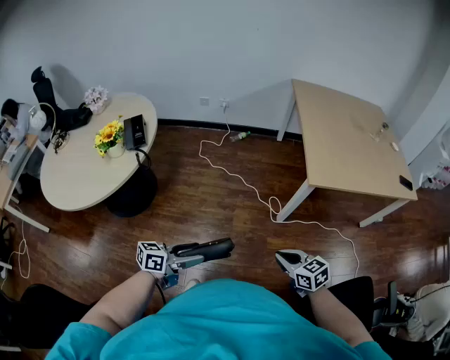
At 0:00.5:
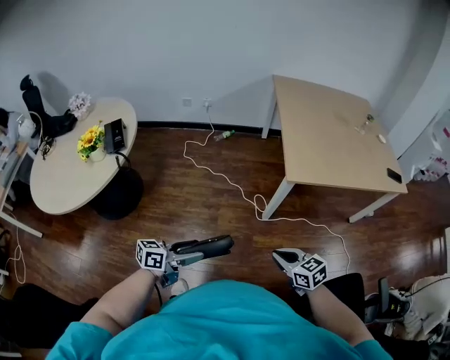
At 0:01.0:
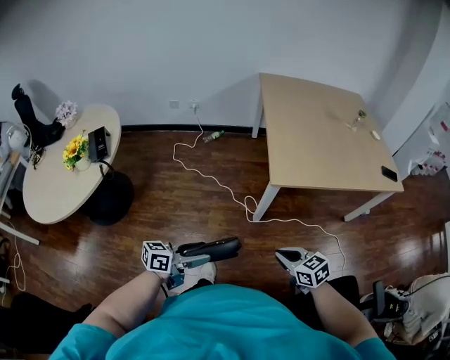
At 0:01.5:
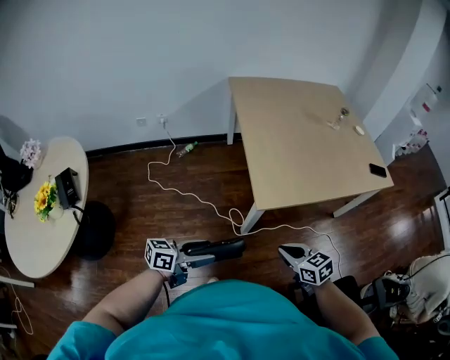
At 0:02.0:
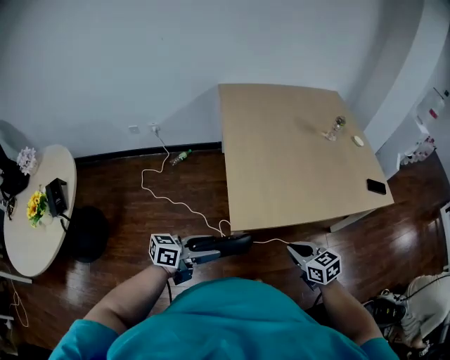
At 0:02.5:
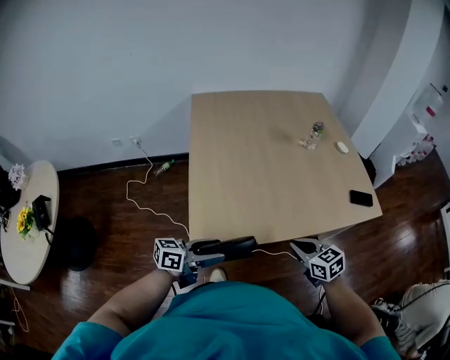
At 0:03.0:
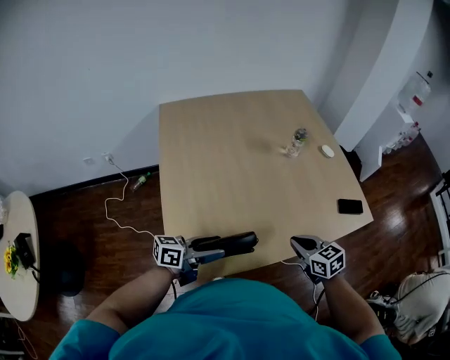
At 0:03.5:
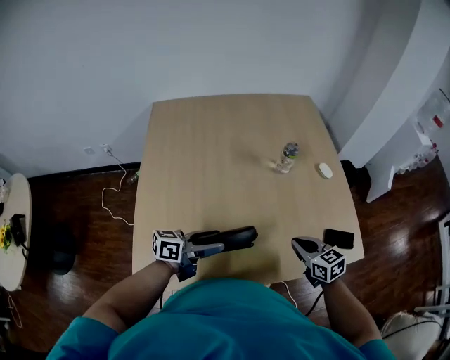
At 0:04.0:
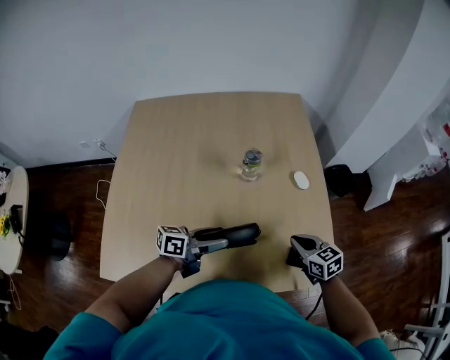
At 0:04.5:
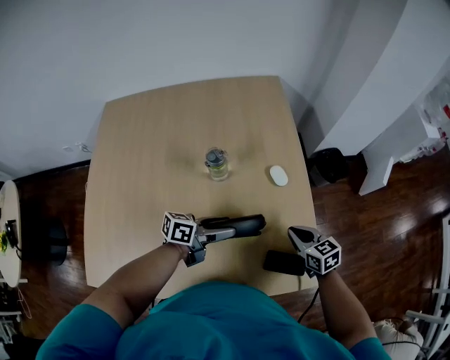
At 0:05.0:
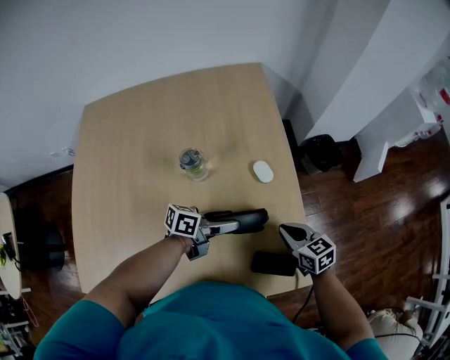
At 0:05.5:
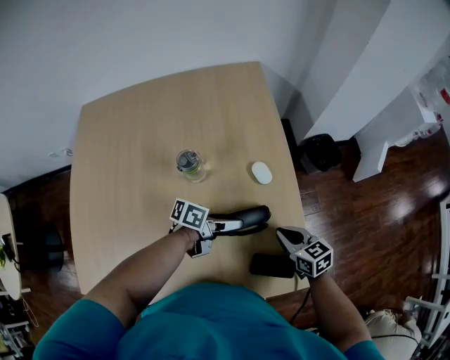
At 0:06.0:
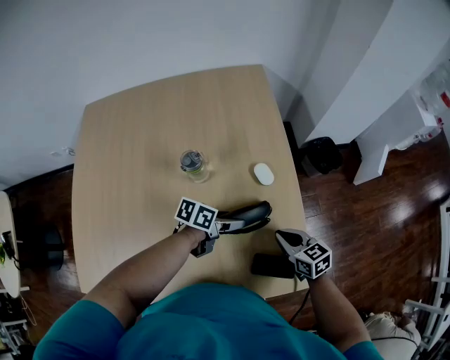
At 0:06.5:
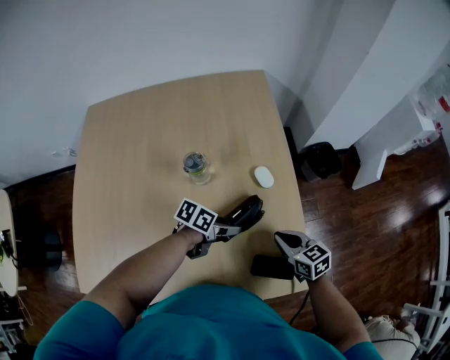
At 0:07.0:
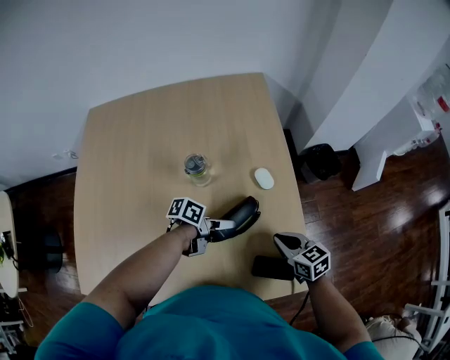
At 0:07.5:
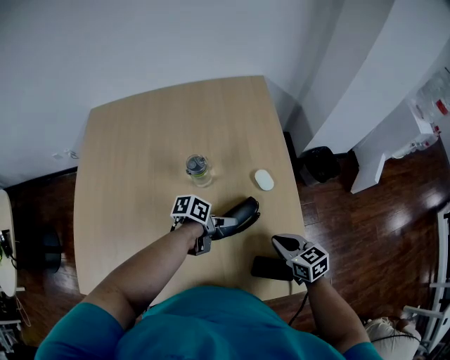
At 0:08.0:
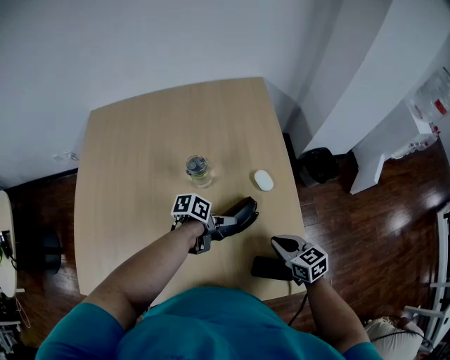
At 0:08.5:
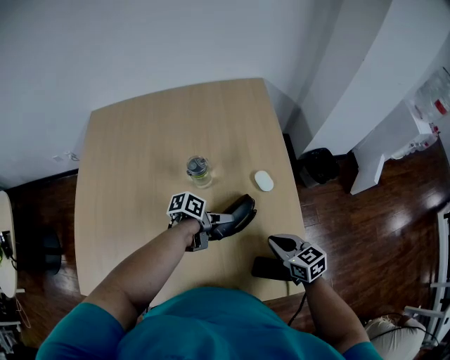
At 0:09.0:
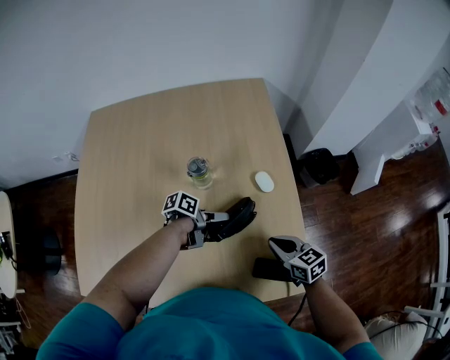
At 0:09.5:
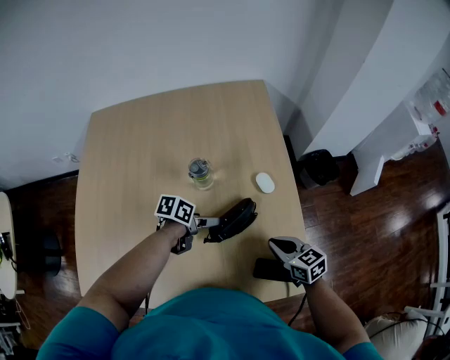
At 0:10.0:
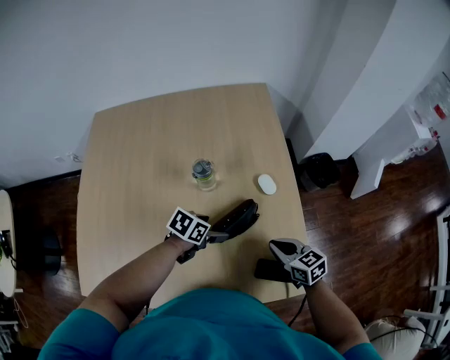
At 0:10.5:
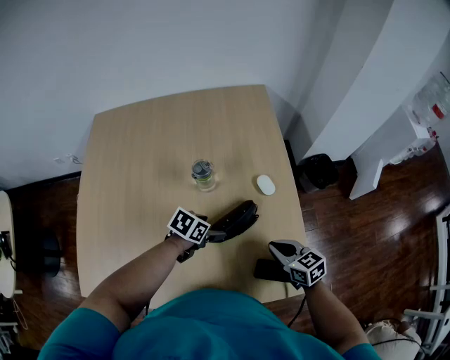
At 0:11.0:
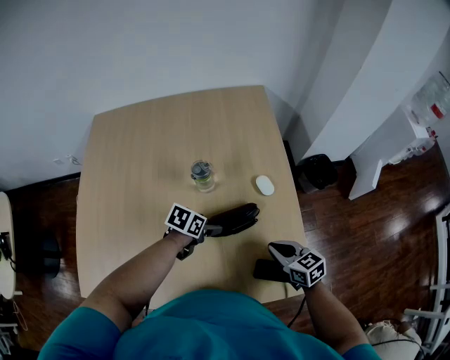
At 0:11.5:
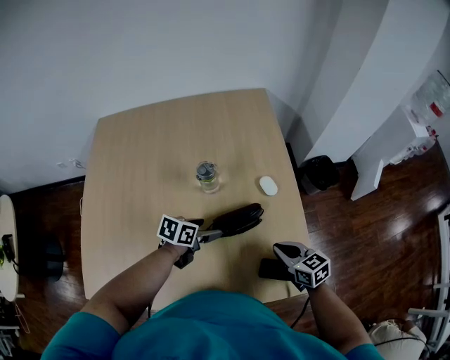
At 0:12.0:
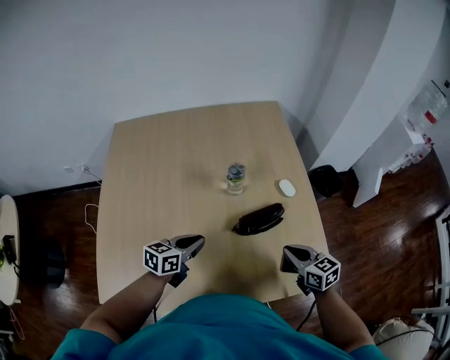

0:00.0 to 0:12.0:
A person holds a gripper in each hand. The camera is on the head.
0:00.0 to 0:02.0: Both grippers are carried forward and to the right, some 40 cm.
0:02.0 to 0:04.0: The two grippers travel together, forward and to the right, about 60 cm.
0:04.0 to 0:06.0: The left gripper travels to the right, forward and downward by some 20 cm, and changes its angle by roughly 30 degrees. Meanwhile the right gripper is displaced to the right and forward by some 10 cm.
0:06.0 to 0:08.0: The grippers stay close to where they were, moving slightly.
0:08.0 to 0:10.0: The left gripper rotates some 40 degrees.
0:10.0 to 0:12.0: The left gripper shifts approximately 15 cm to the left, backward and upward, turns by about 30 degrees, and closes its fingers; the right gripper moves about 5 cm.

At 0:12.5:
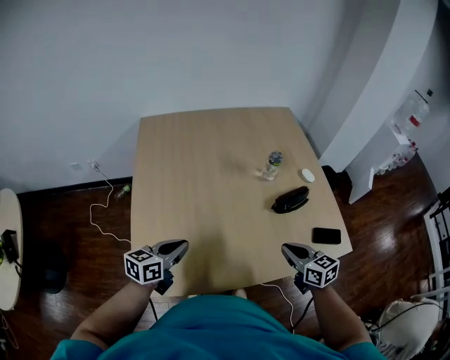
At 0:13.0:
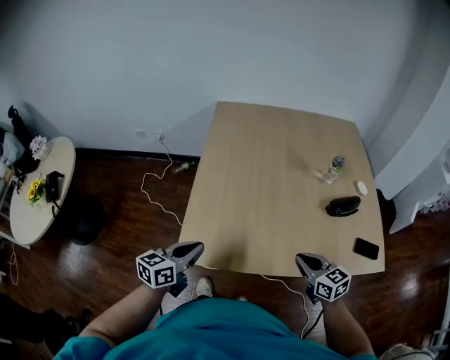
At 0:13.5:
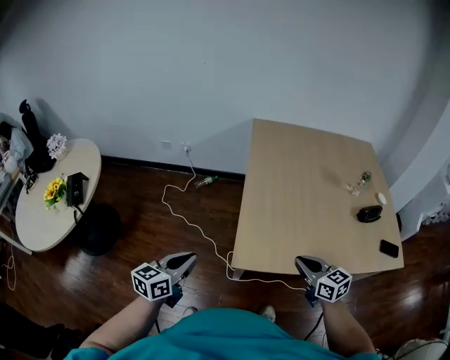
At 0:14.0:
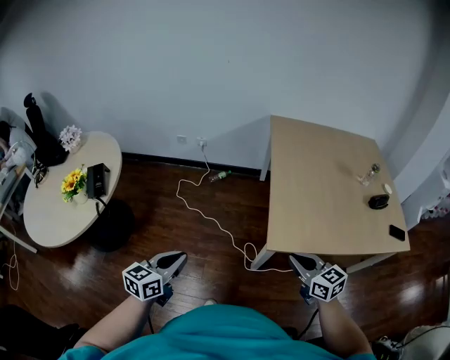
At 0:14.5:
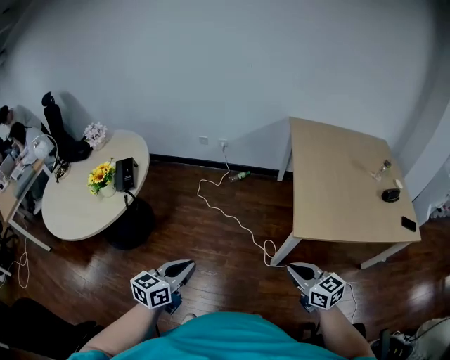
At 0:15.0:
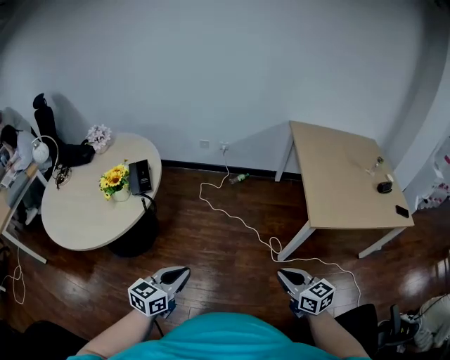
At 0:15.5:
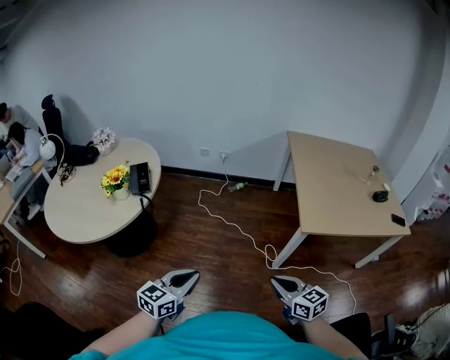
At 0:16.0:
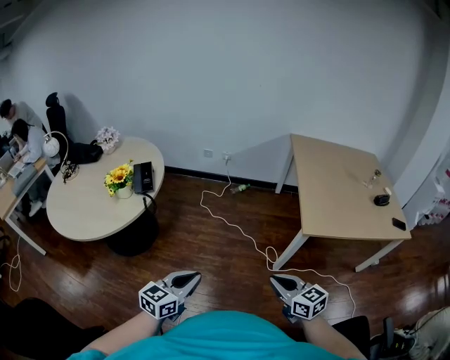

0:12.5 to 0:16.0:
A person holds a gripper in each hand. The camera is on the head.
0:12.5 to 0:14.5: The pair of grippers is taken to the left and backward, some 70 cm. The right gripper rotates about 30 degrees, while the left gripper changes its angle by about 20 degrees.
0:14.5 to 0:16.0: The right gripper goes approximately 15 cm to the left and backward, while the left gripper travels backward and to the left by roughly 10 cm.

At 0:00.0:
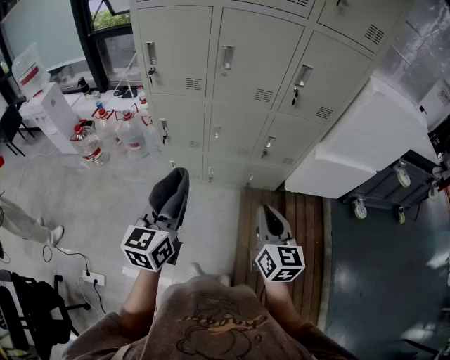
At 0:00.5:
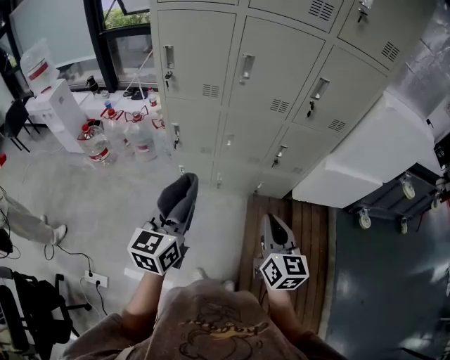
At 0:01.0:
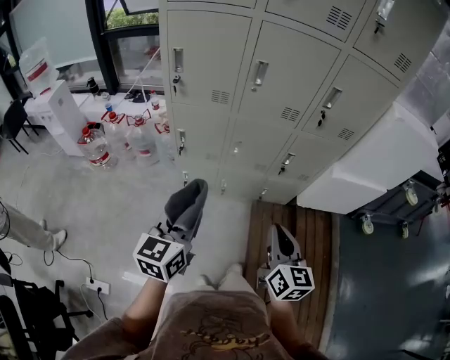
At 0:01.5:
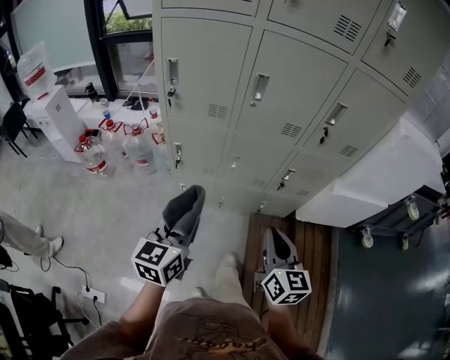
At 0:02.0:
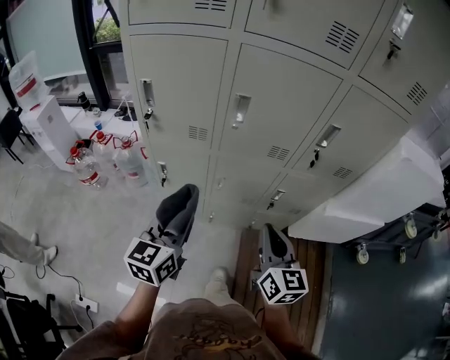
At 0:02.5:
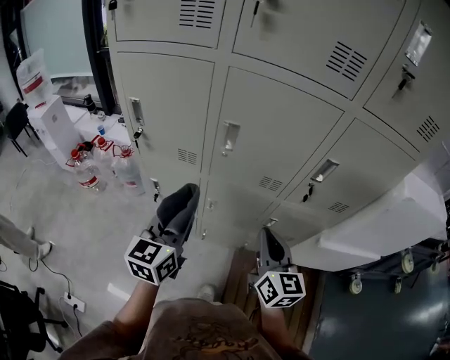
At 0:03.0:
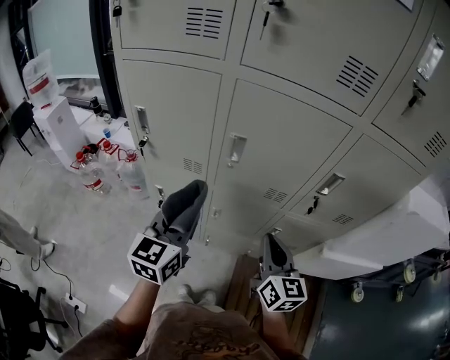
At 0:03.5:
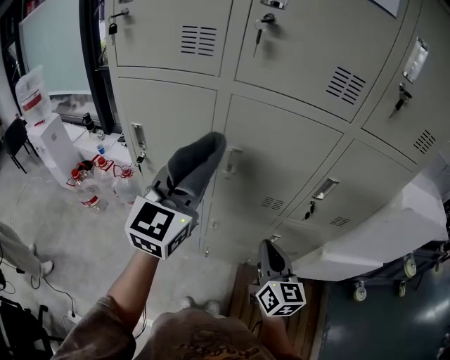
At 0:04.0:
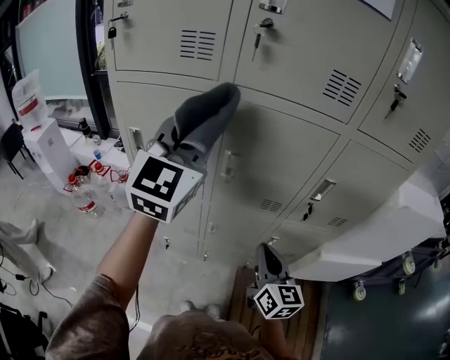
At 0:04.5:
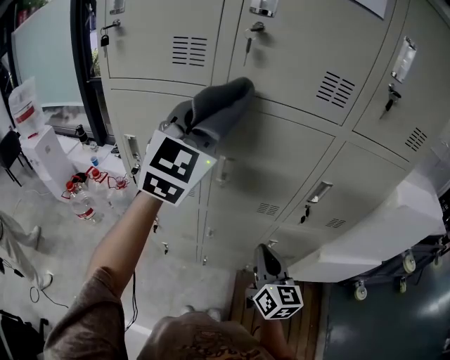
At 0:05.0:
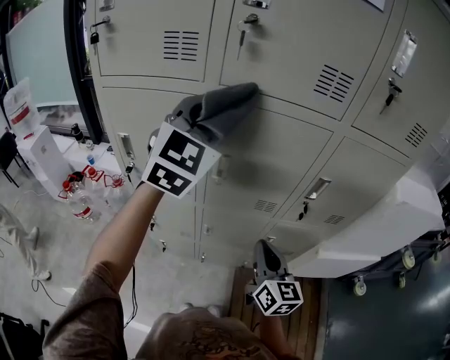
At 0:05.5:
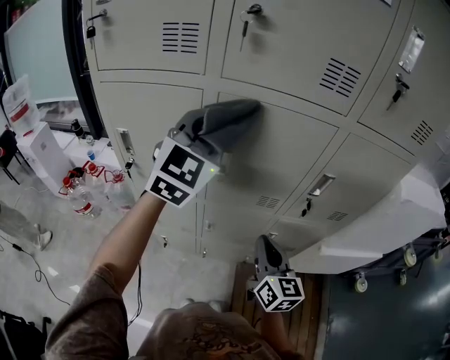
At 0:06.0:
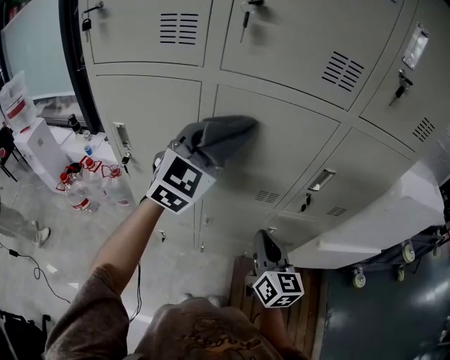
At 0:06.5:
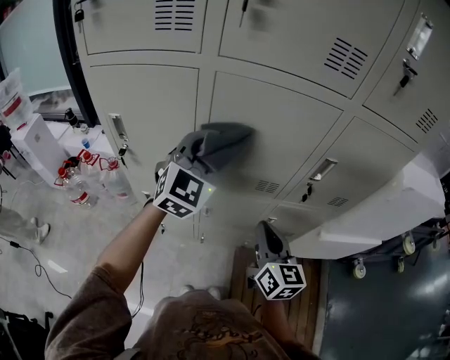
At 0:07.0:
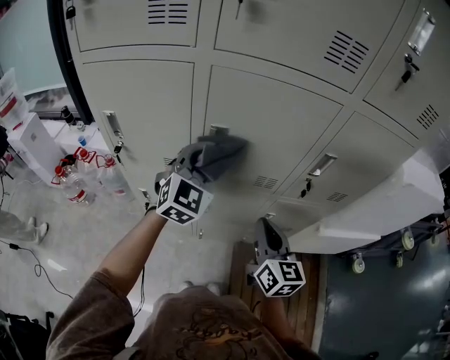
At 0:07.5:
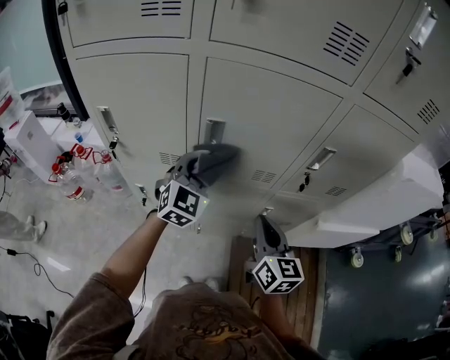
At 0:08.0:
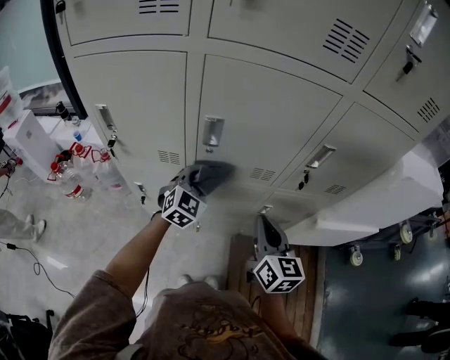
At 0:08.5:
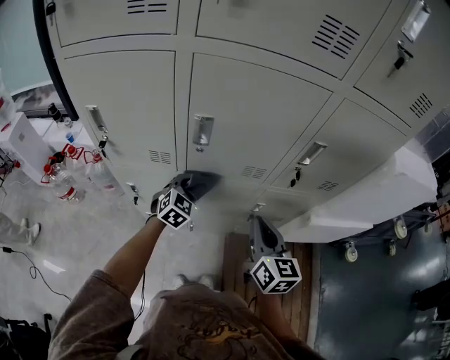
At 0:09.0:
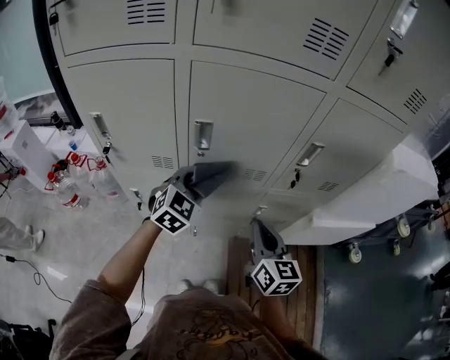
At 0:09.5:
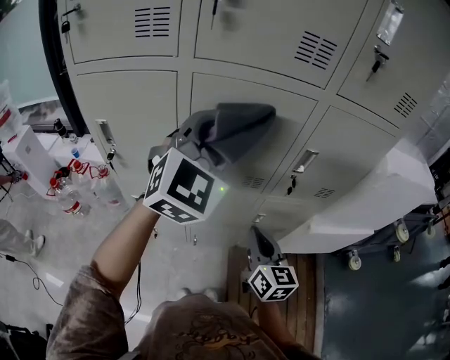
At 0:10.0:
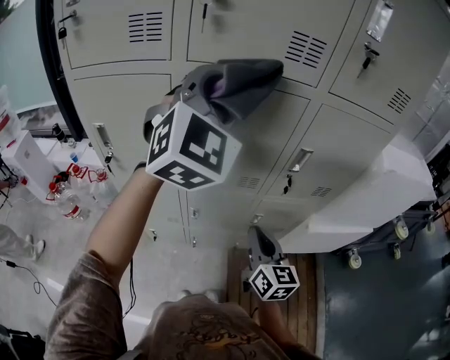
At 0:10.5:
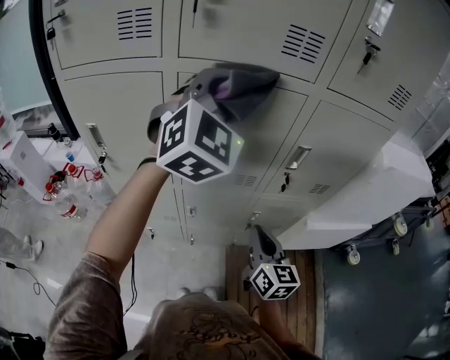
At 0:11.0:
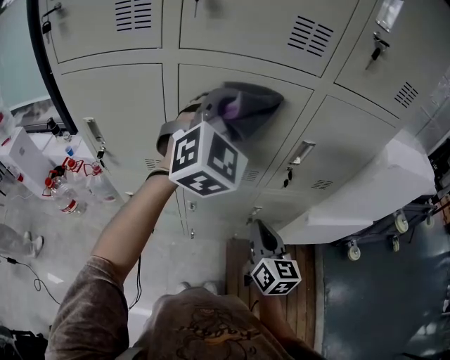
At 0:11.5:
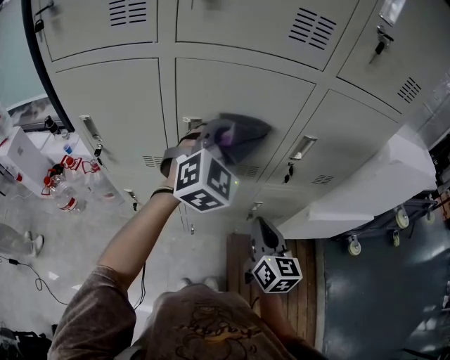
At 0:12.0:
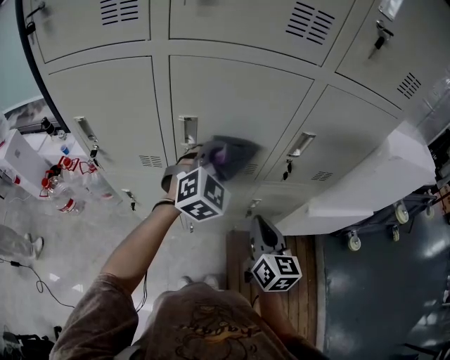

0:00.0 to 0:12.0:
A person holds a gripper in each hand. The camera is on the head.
0:00.0 to 0:02.0: The grippers both shift forward by approximately 20 cm.
0:02.0 to 0:04.0: The left gripper is displaced upward and forward by some 35 cm, and turns by approximately 40 degrees; the right gripper heads forward, covering roughly 10 cm.
0:04.0 to 0:06.0: The left gripper goes roughly 10 cm downward, forward and to the right.
0:06.0 to 0:08.0: The left gripper shifts approximately 25 cm downward.
0:08.0 to 0:10.0: The left gripper heads upward, covering roughly 40 cm, and swivels approximately 30 degrees.
0:10.0 to 0:12.0: The left gripper shifts some 25 cm downward, and changes its angle by approximately 30 degrees.
